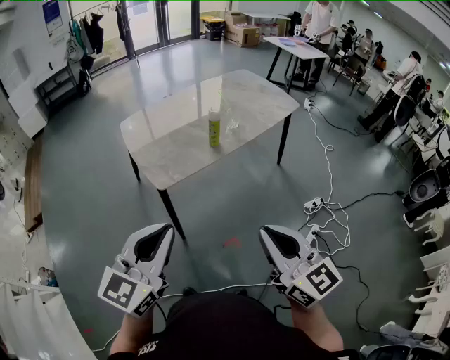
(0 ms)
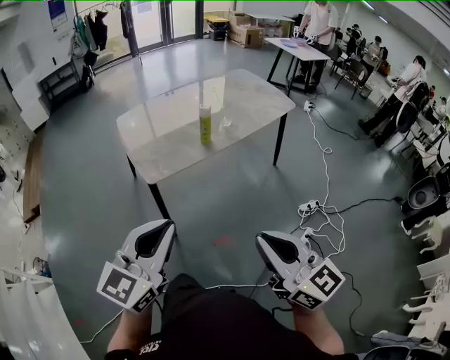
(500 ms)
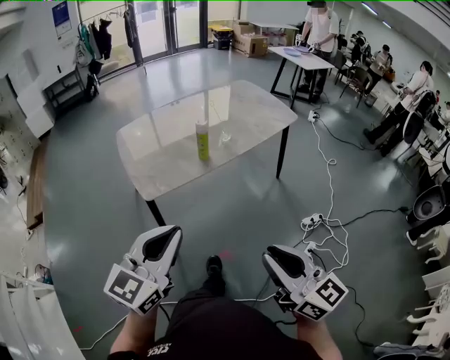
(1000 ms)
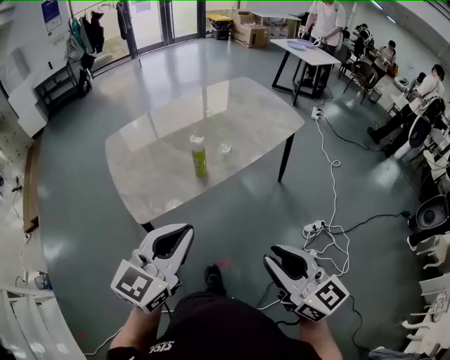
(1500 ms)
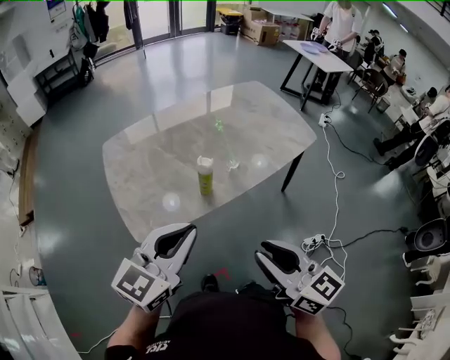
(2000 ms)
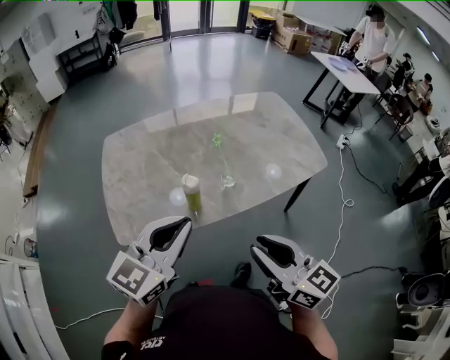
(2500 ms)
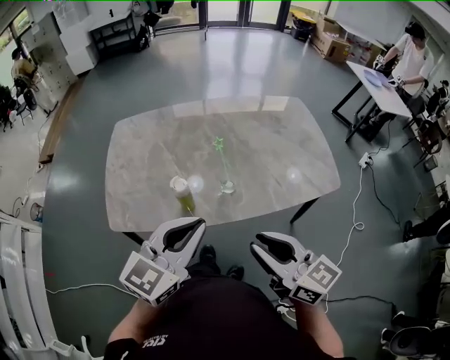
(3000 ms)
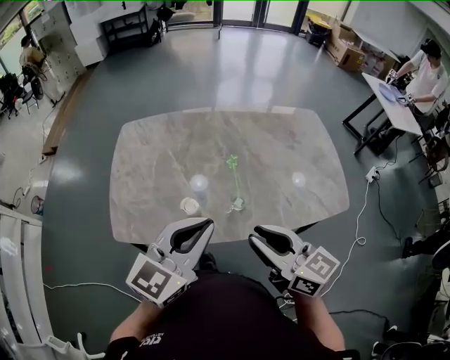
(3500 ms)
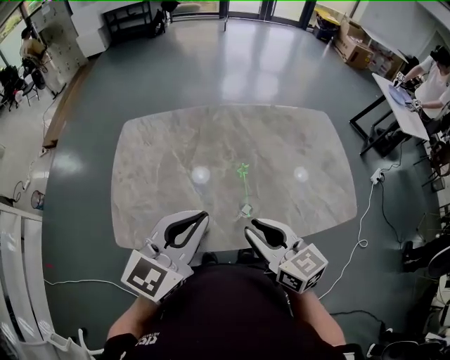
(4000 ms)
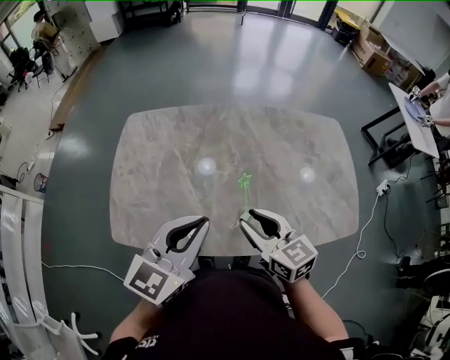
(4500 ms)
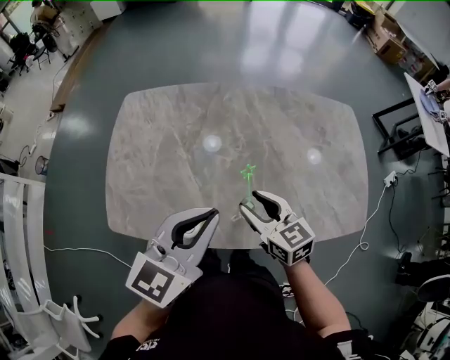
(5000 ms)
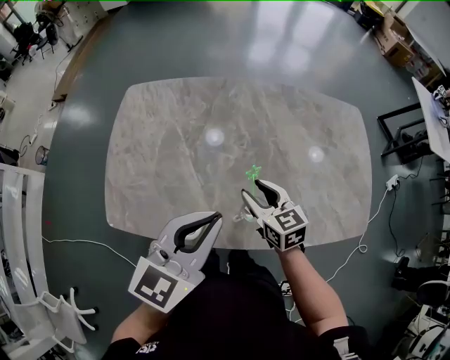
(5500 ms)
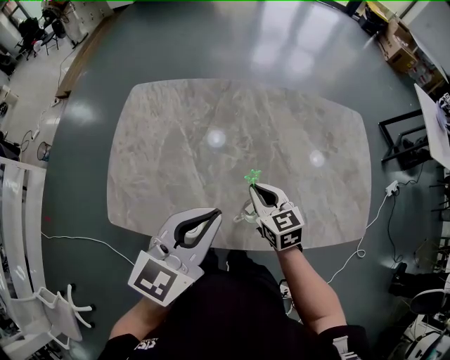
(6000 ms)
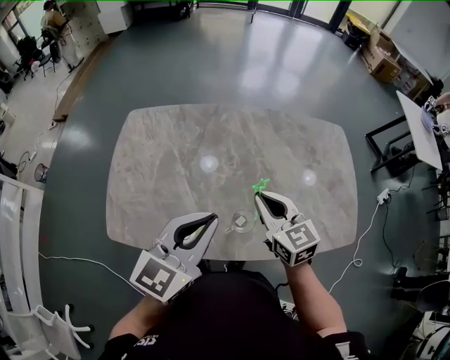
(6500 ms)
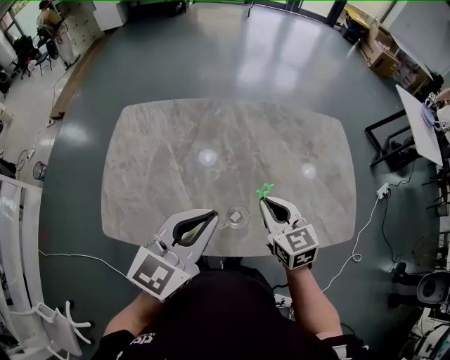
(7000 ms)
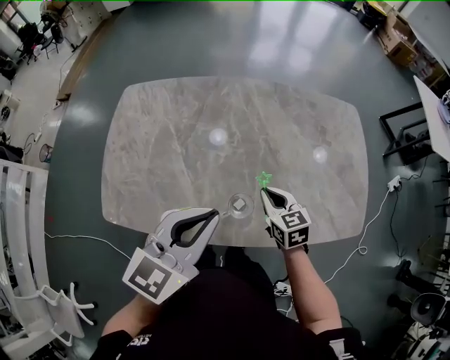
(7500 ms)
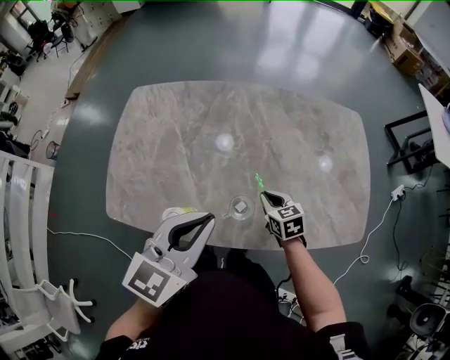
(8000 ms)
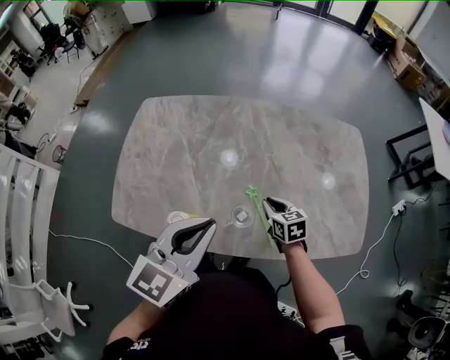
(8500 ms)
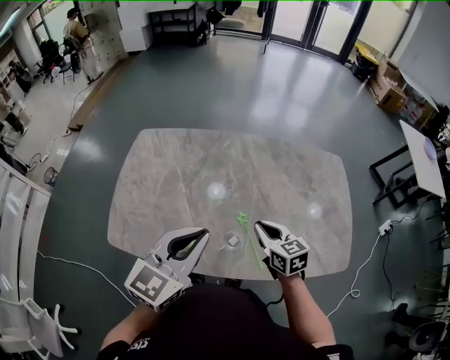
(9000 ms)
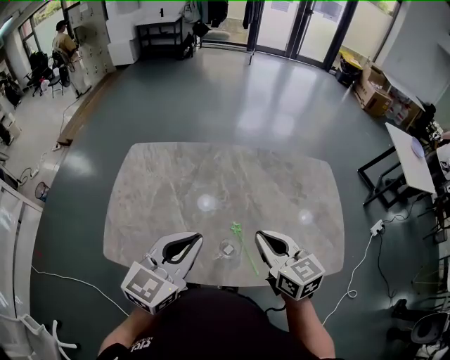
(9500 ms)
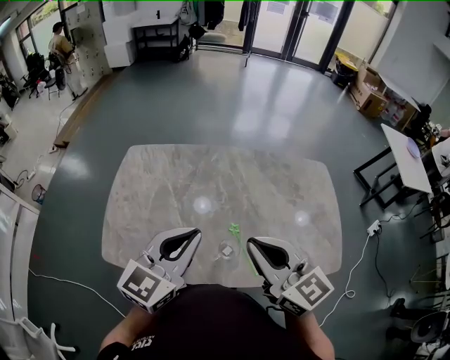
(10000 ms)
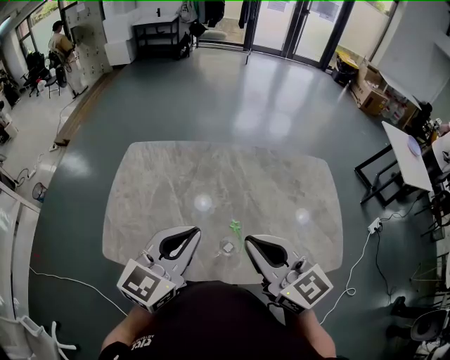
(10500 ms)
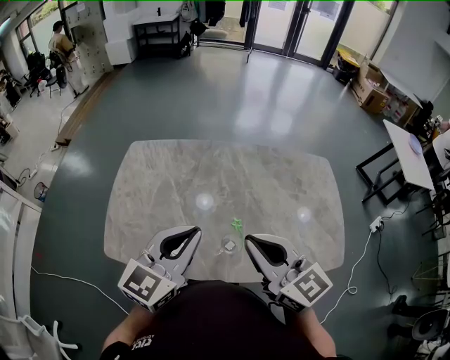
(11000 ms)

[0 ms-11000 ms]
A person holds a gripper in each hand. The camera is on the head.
0 ms to 2000 ms: The grippers both shift forward and to the right by about 30 cm. The right gripper opens.
2000 ms to 3500 ms: The left gripper shifts by about 20 cm, and rotates about 20 degrees. The right gripper moves some 25 cm, and swivels approximately 30 degrees.
3500 ms to 5500 ms: The left gripper shifts about 10 cm forward. Meanwhile the right gripper is displaced forward and downward by some 30 cm, swivels approximately 20 degrees, and opens.
5500 ms to 7500 ms: The right gripper shifts some 10 cm to the right, moves roughly 10 cm upward and comes back, and closes up.
7500 ms to 9000 ms: The right gripper moves upward, roughly 5 cm.
9000 ms to 11000 ms: The right gripper travels upward by some 20 cm, and changes its angle by about 30 degrees.

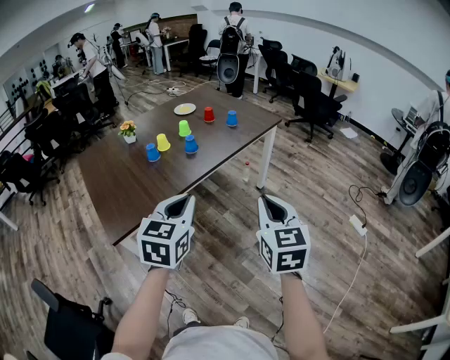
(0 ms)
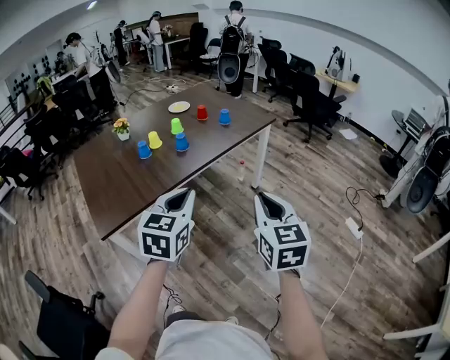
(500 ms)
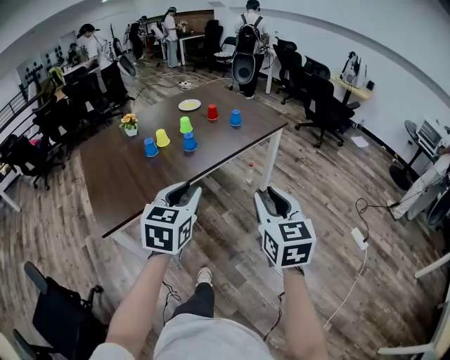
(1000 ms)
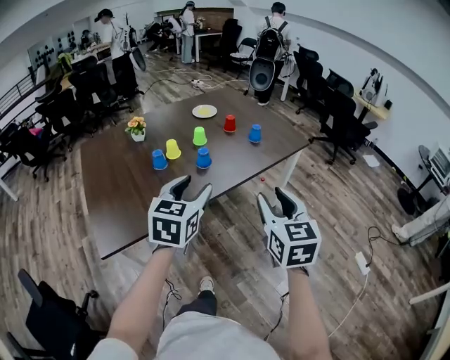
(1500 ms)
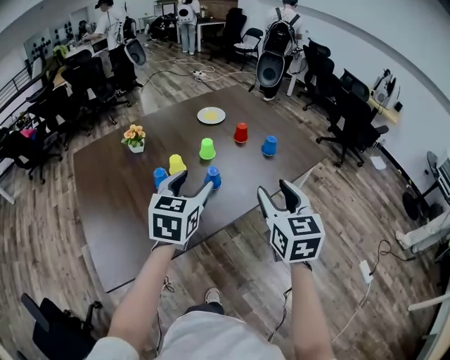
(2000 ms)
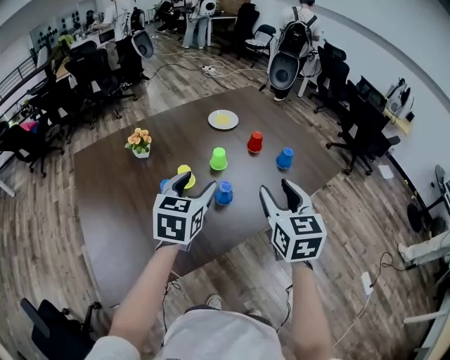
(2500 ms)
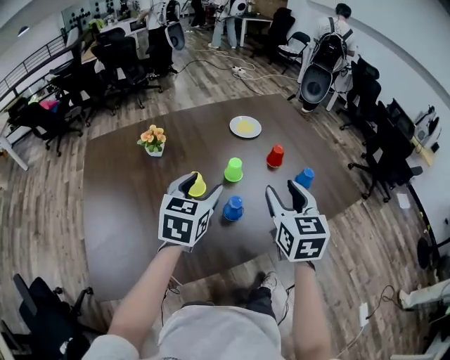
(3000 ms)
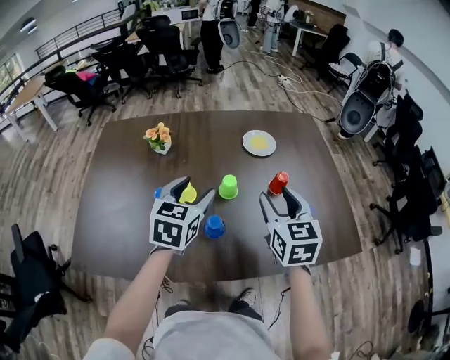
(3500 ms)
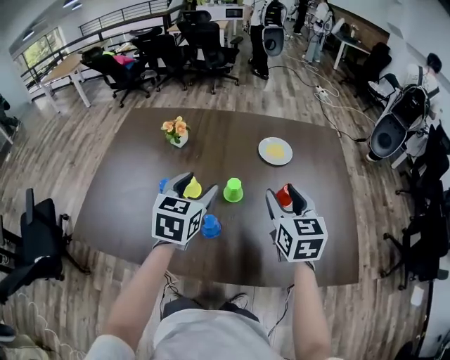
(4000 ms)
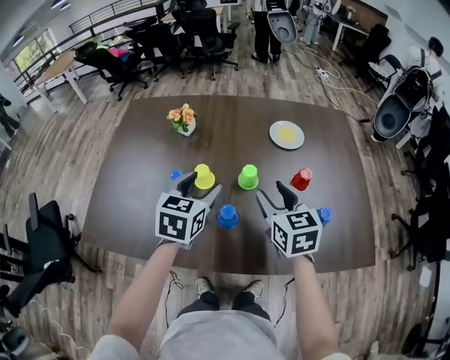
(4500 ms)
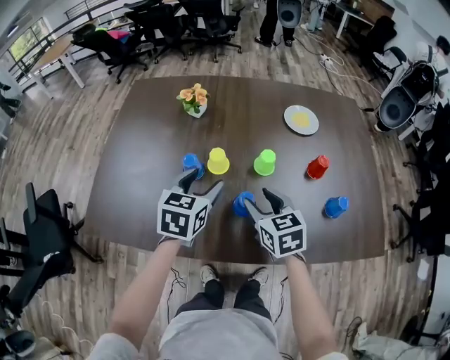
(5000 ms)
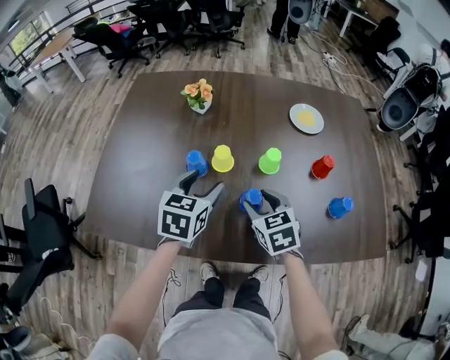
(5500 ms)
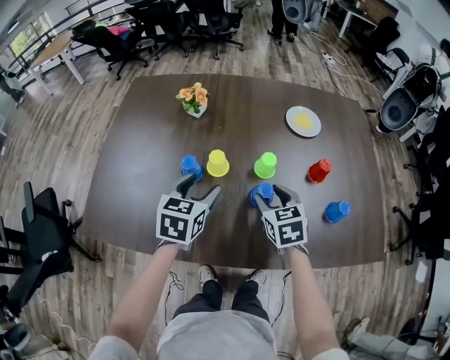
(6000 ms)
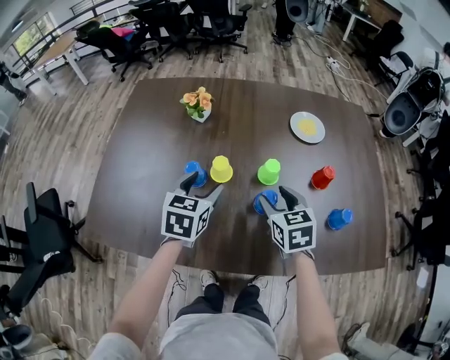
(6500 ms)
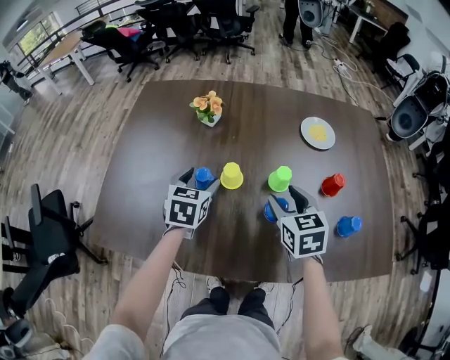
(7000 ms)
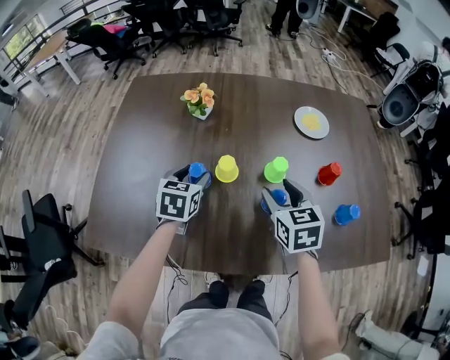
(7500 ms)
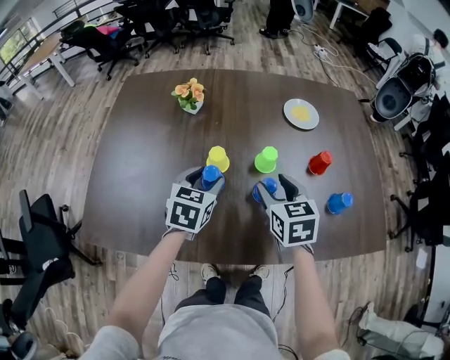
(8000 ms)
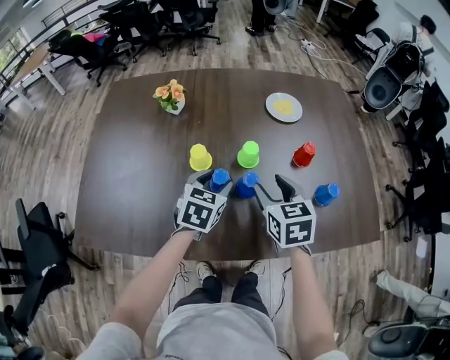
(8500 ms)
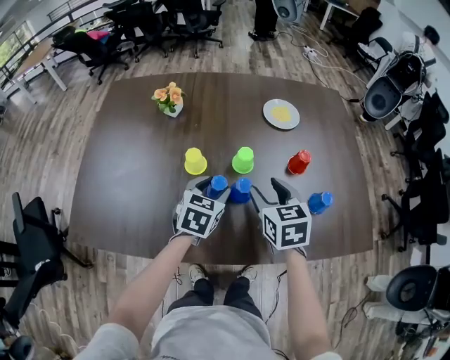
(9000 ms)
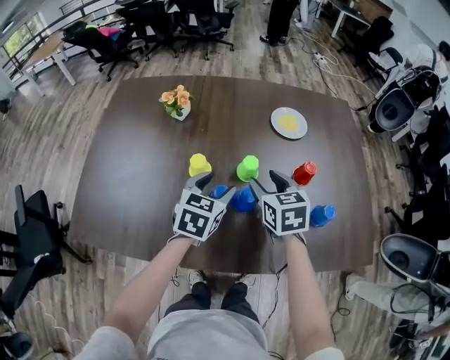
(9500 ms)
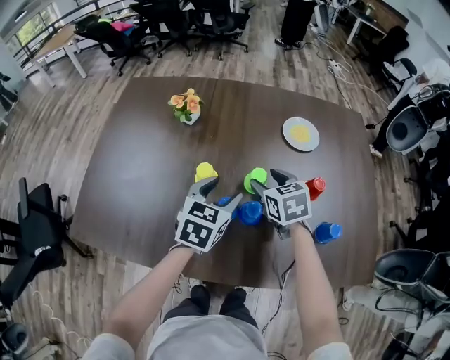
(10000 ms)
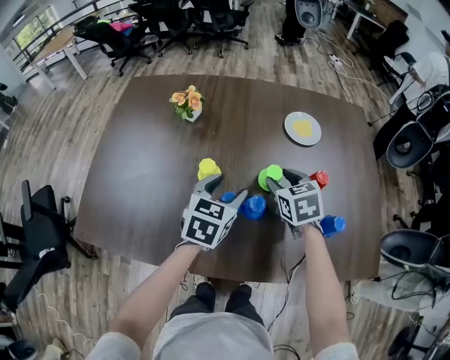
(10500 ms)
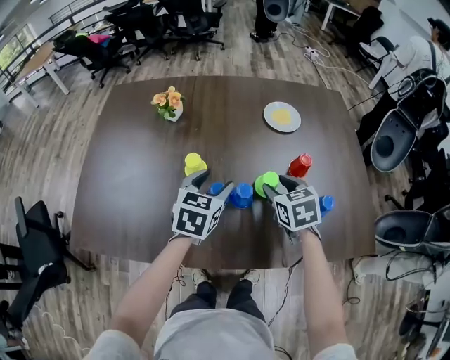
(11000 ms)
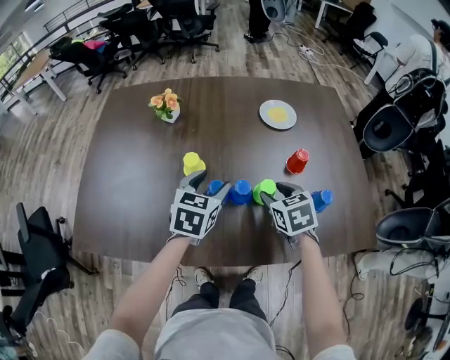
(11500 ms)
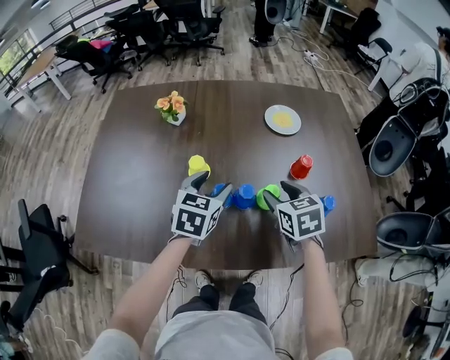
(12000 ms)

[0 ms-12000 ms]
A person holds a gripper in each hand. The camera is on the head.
0 ms to 2000 ms: Both grippers travel together forward, approximately 35 cm. The right gripper opens its fingers. The left gripper opens up.
2000 ms to 4000 ms: The left gripper changes place by approximately 20 cm, and changes its angle by roughly 40 degrees. The right gripper ends up roughly 35 cm from where it was, and rotates some 40 degrees.
4000 ms to 6000 ms: Both grippers travel together downward and to the left, approximately 15 cm. The right gripper changes its angle by some 20 degrees.
8000 ms to 10000 ms: The right gripper heads forward, covering roughly 10 cm; the left gripper is displaced to the right by some 10 cm.
10000 ms to 12000 ms: The right gripper moves backward and to the right, some 10 cm.

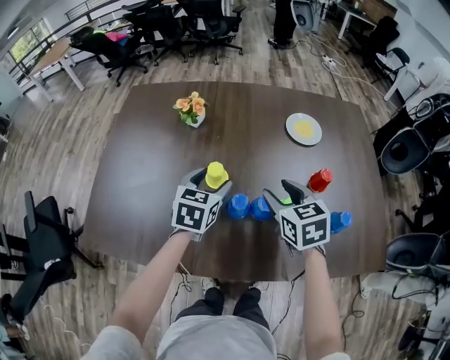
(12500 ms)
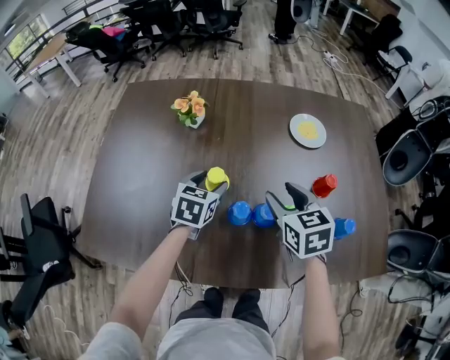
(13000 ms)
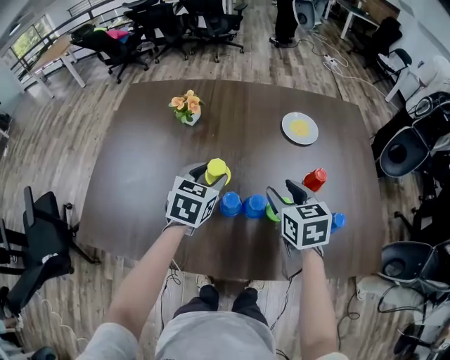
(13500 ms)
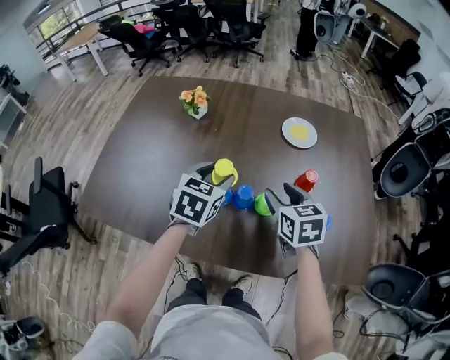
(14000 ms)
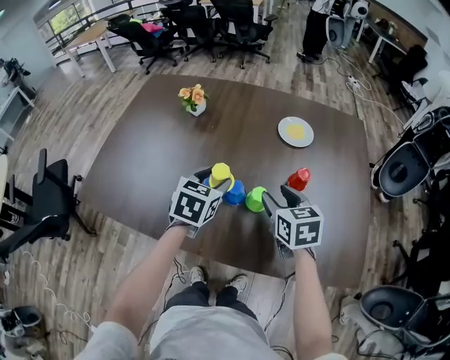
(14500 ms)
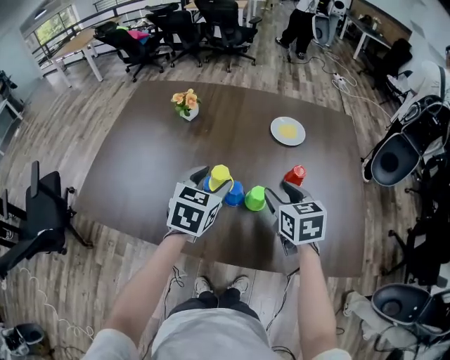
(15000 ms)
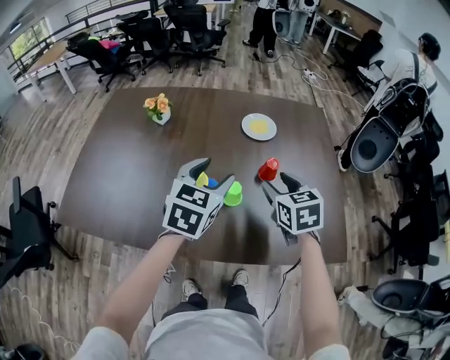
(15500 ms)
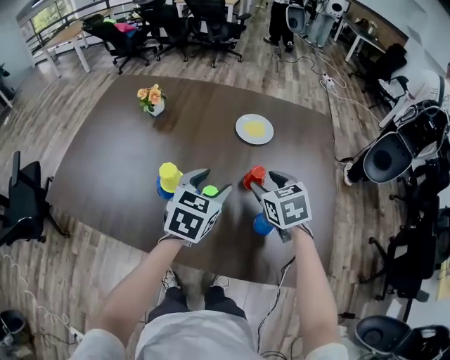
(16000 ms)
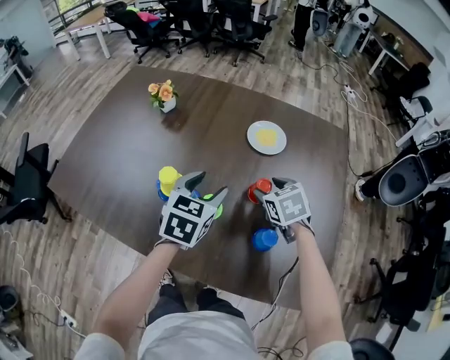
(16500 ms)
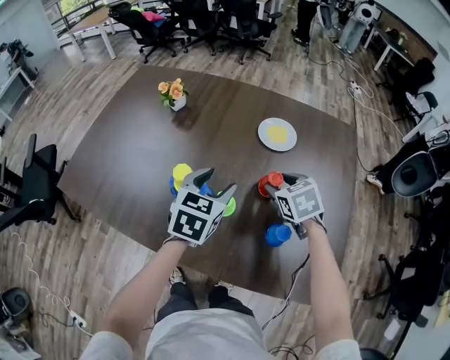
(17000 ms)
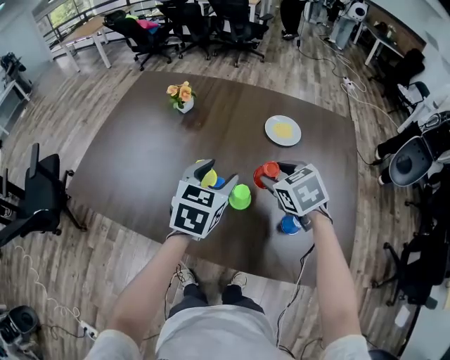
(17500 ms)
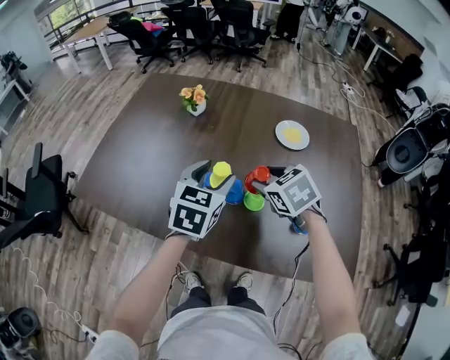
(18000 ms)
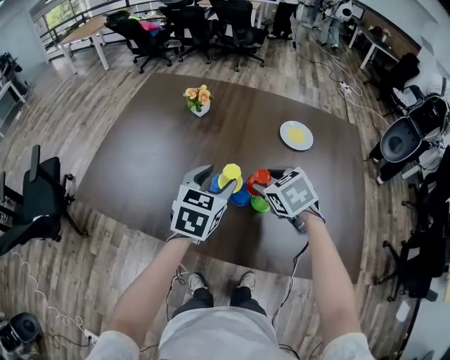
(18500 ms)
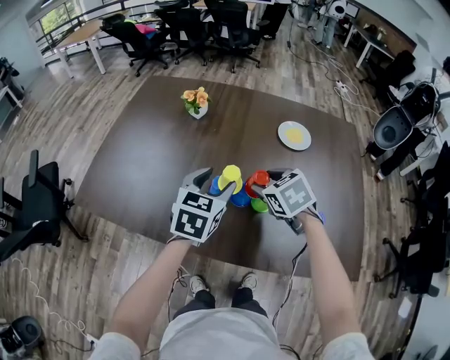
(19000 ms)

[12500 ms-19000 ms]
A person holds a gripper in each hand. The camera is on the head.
12500 ms to 14500 ms: The right gripper shifts approximately 10 cm to the right. The left gripper moves to the right and backward, roughly 10 cm.
14500 ms to 17000 ms: The right gripper shifts about 10 cm to the right and forward, and rotates about 30 degrees. Meanwhile the left gripper is displaced to the right by approximately 10 cm.
17000 ms to 19000 ms: Both grippers move to the left, roughly 15 cm.
